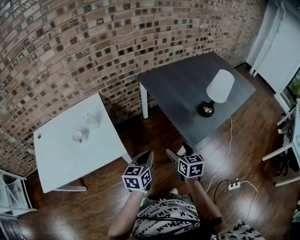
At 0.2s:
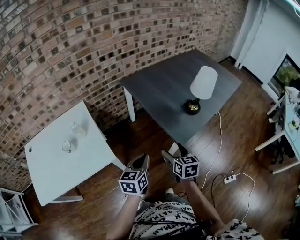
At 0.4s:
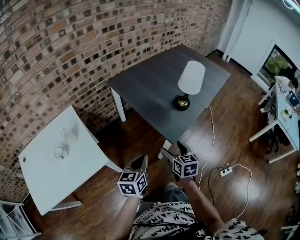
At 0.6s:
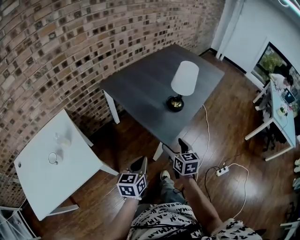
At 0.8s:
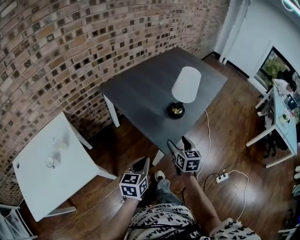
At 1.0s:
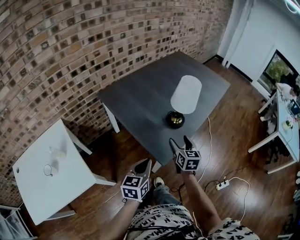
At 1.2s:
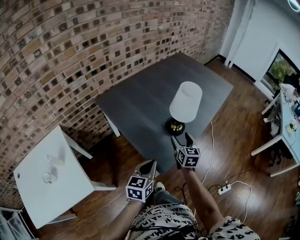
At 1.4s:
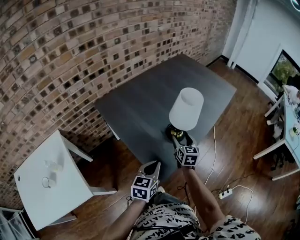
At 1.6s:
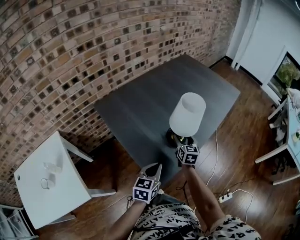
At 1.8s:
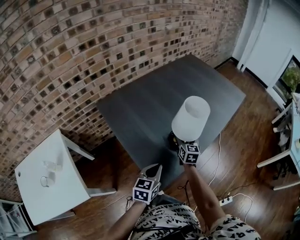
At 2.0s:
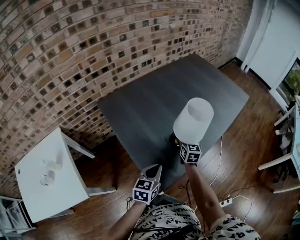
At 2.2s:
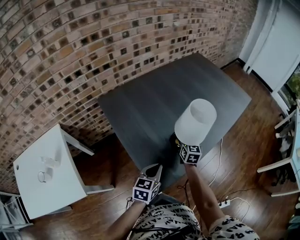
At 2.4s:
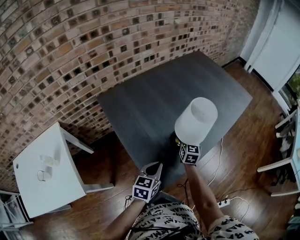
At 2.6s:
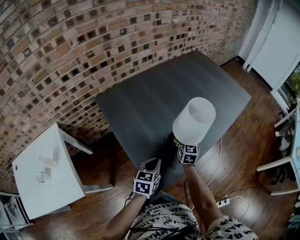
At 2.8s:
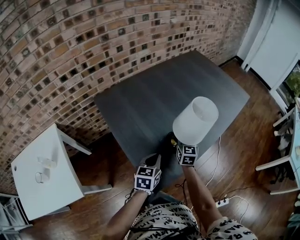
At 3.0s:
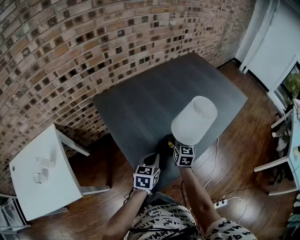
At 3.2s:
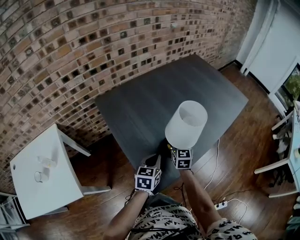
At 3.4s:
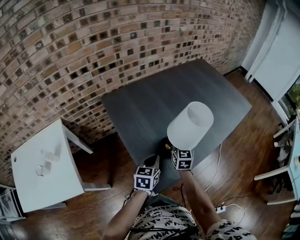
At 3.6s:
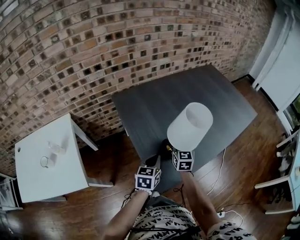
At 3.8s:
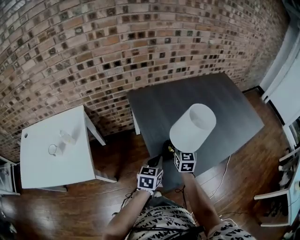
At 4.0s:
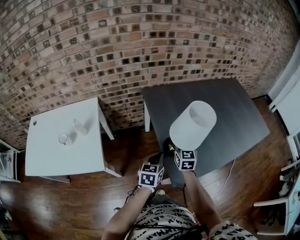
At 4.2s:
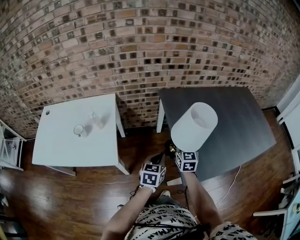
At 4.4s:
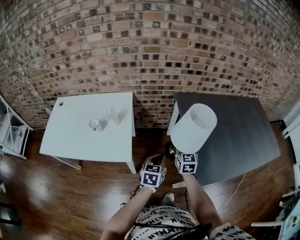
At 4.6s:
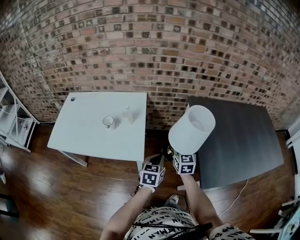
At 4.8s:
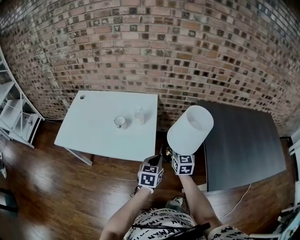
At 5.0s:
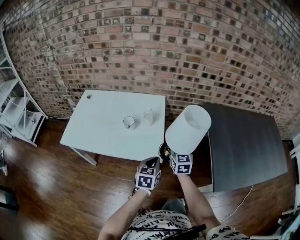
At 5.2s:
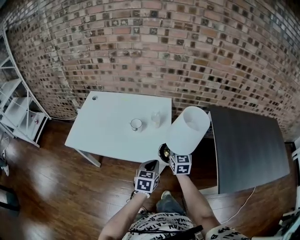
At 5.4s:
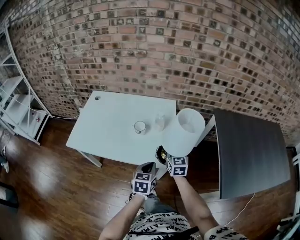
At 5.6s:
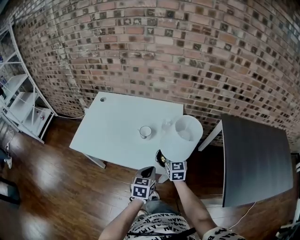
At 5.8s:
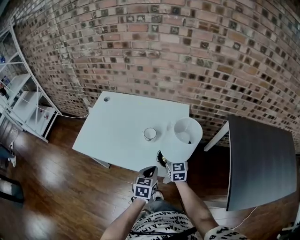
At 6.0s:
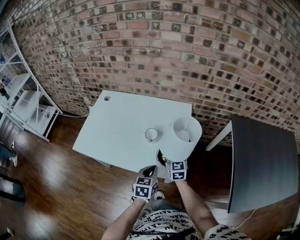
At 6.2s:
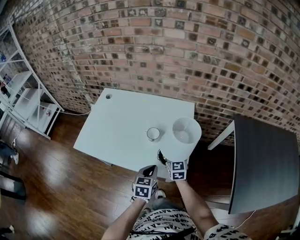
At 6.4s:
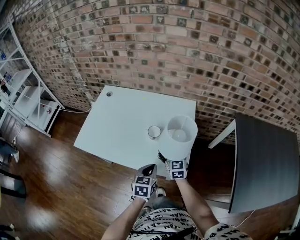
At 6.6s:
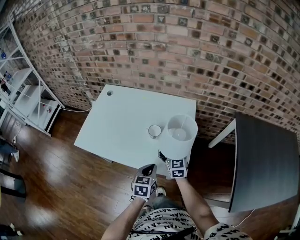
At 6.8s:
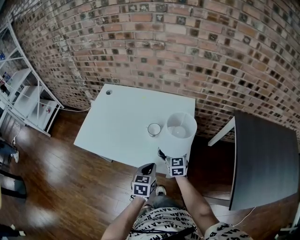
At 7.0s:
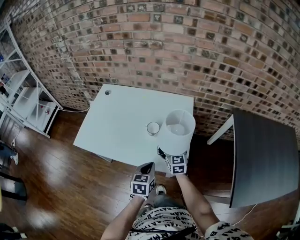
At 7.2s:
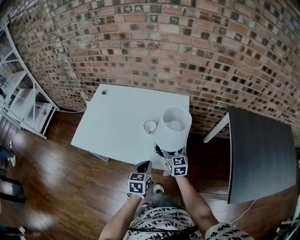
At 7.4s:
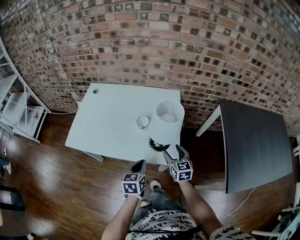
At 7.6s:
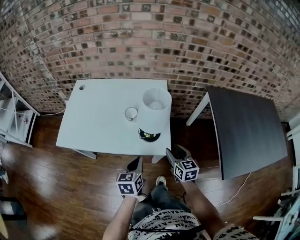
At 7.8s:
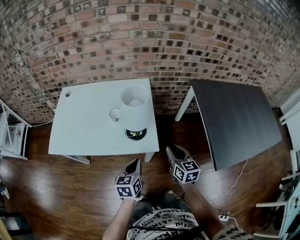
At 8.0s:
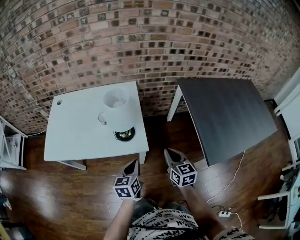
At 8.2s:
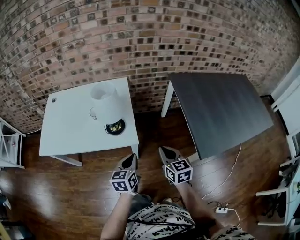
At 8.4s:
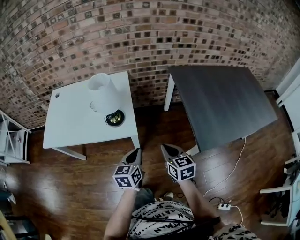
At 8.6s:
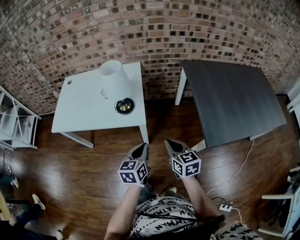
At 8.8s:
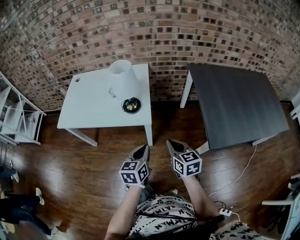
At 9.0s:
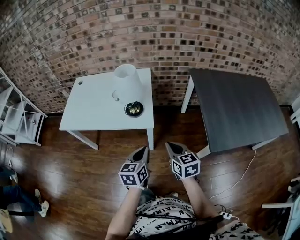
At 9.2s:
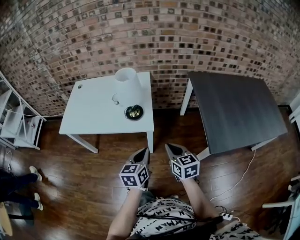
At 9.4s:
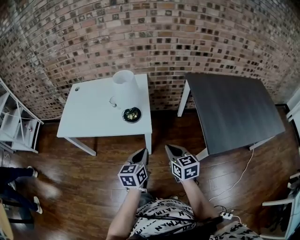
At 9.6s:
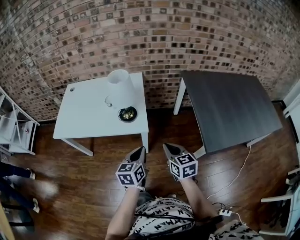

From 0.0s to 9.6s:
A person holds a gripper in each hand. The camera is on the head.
From 0.0s to 1.6s: Both grippers move forward and to the right, about 40 cm. The left gripper turns by about 20 degrees. Meanwhile the right gripper changes its angle by roughly 20 degrees.
From 1.6s to 3.2s: The left gripper heads forward, covering some 10 cm; the right gripper ends up roughly 5 cm from where it was, and closes its fingers.
From 3.2s to 4.8s: The two grippers travel together, approximately 50 cm. The left gripper swivels some 40 degrees. The right gripper turns by some 40 degrees.
From 4.8s to 6.4s: The left gripper goes about 20 cm to the left. The right gripper moves to the left and forward, roughly 25 cm.
From 6.4s to 8.0s: The left gripper heads backward and to the right, covering some 15 cm. Meanwhile the right gripper goes some 30 cm backward and to the right, turns by some 20 degrees, and opens, then closes again.
From 8.0s to 9.6s: The left gripper travels backward and upward by some 10 cm; the right gripper is displaced backward by about 10 cm.

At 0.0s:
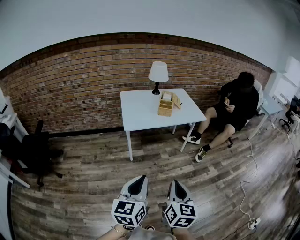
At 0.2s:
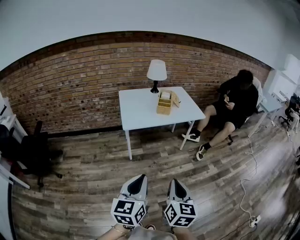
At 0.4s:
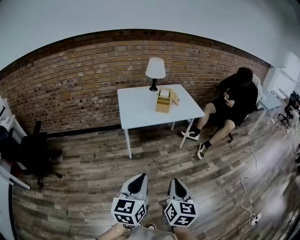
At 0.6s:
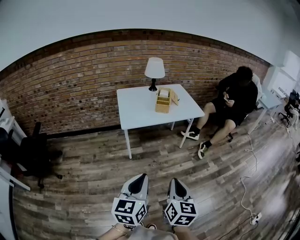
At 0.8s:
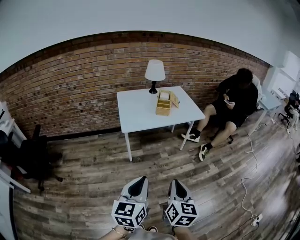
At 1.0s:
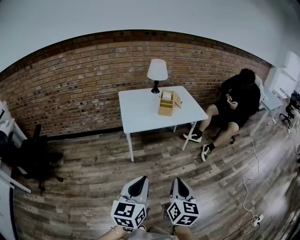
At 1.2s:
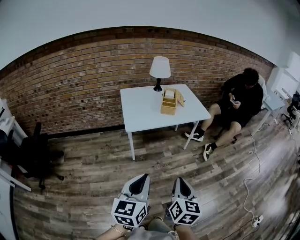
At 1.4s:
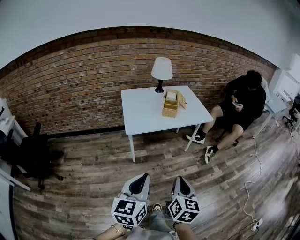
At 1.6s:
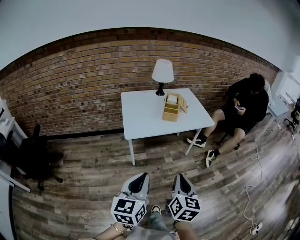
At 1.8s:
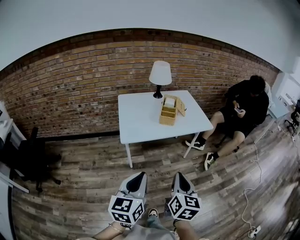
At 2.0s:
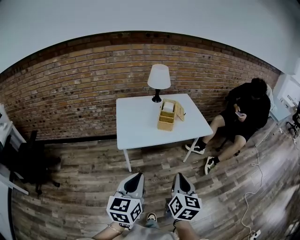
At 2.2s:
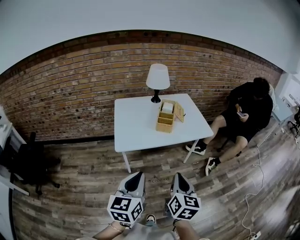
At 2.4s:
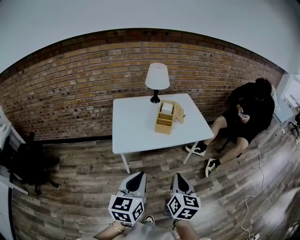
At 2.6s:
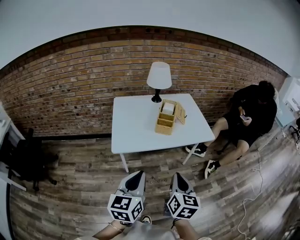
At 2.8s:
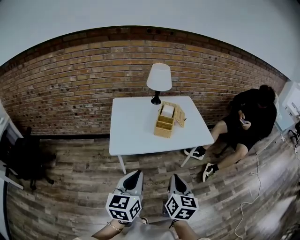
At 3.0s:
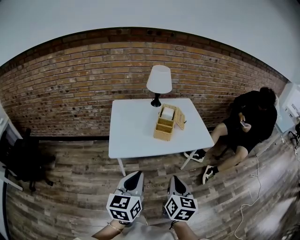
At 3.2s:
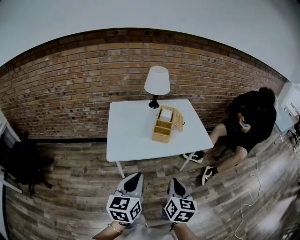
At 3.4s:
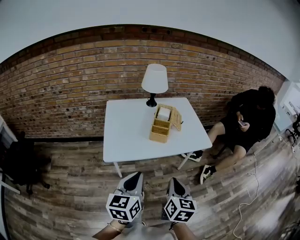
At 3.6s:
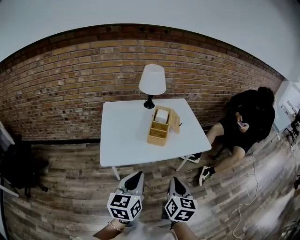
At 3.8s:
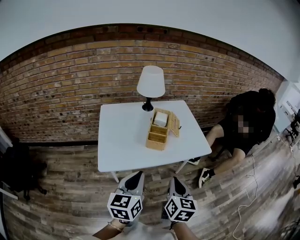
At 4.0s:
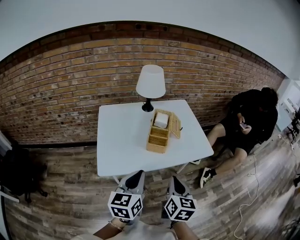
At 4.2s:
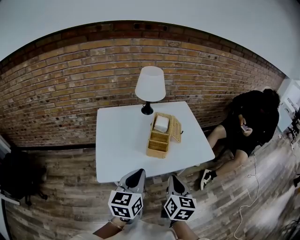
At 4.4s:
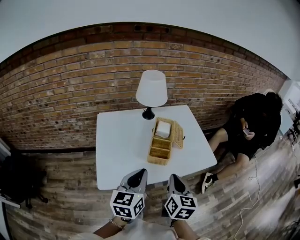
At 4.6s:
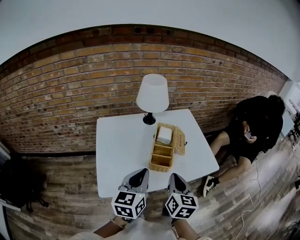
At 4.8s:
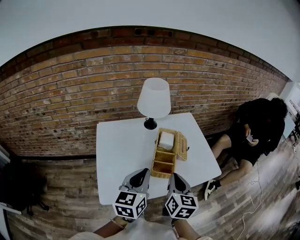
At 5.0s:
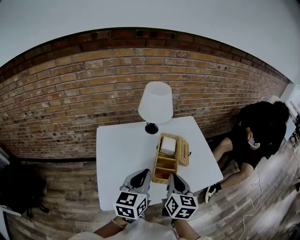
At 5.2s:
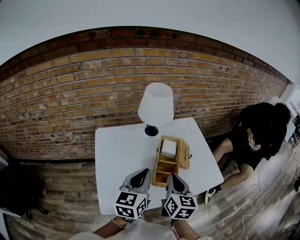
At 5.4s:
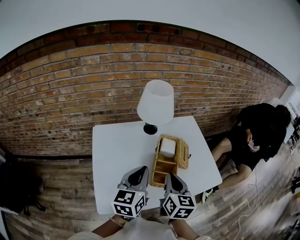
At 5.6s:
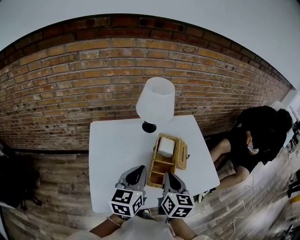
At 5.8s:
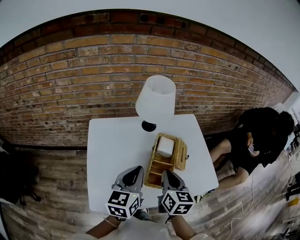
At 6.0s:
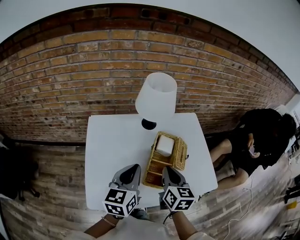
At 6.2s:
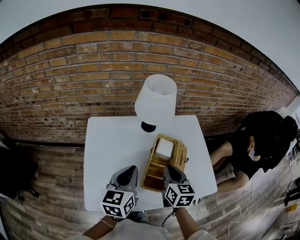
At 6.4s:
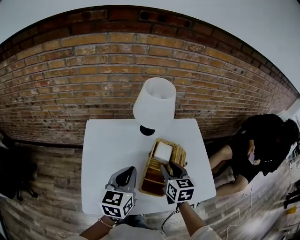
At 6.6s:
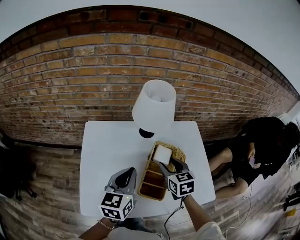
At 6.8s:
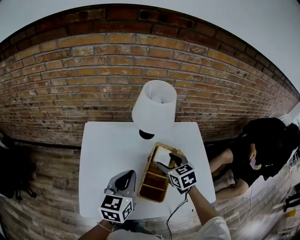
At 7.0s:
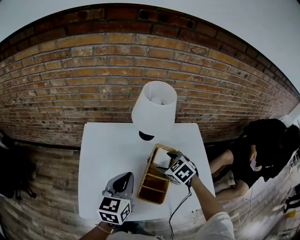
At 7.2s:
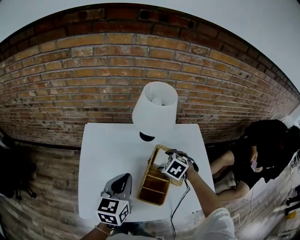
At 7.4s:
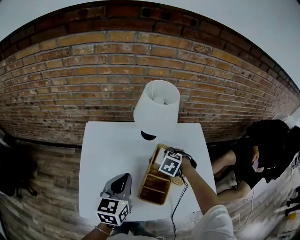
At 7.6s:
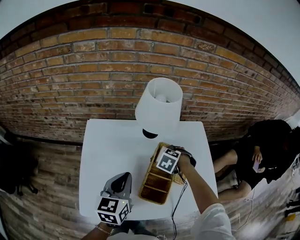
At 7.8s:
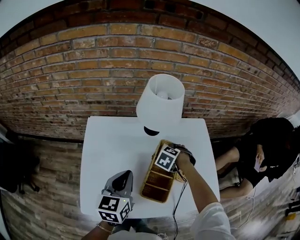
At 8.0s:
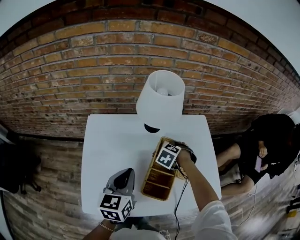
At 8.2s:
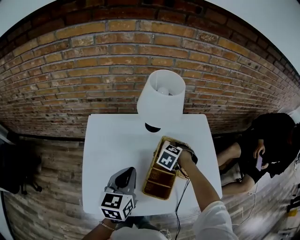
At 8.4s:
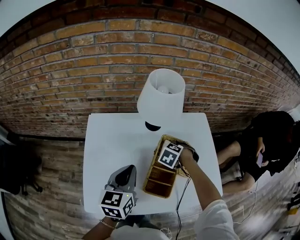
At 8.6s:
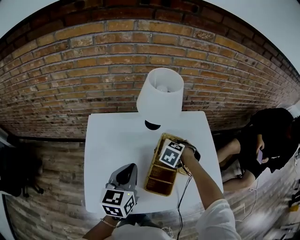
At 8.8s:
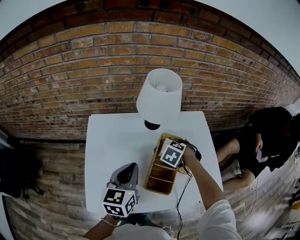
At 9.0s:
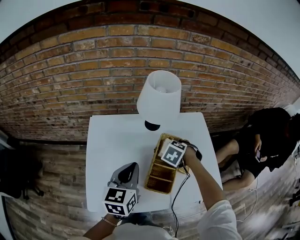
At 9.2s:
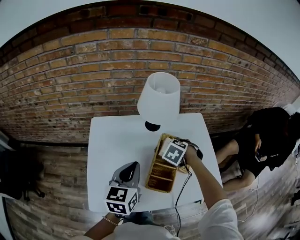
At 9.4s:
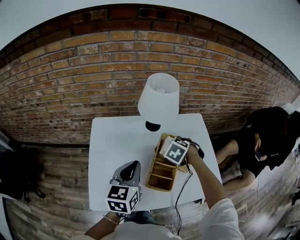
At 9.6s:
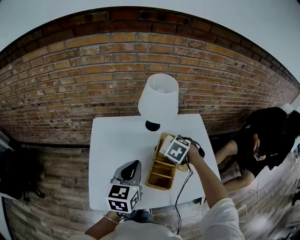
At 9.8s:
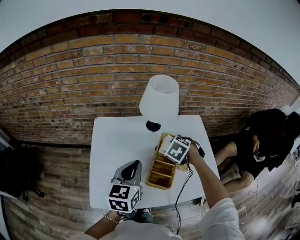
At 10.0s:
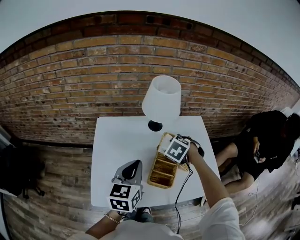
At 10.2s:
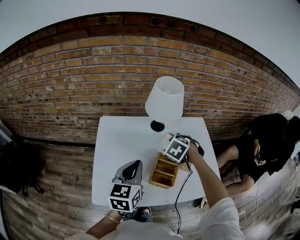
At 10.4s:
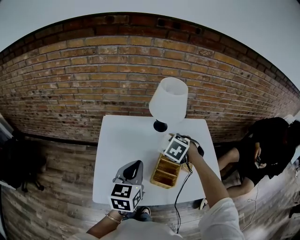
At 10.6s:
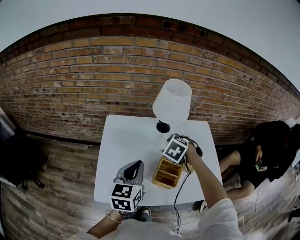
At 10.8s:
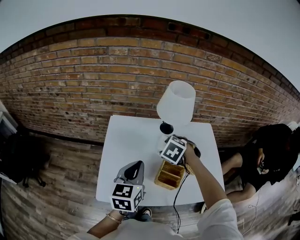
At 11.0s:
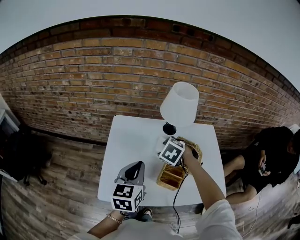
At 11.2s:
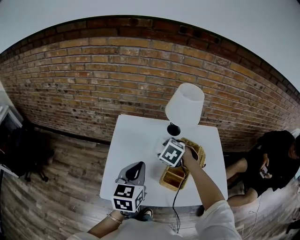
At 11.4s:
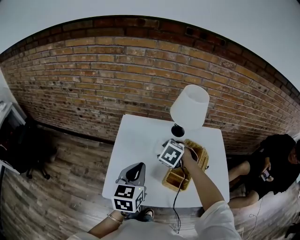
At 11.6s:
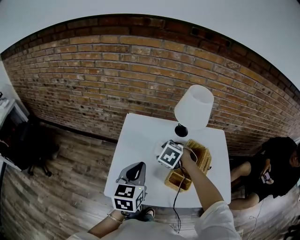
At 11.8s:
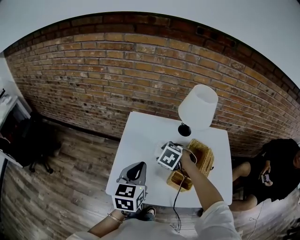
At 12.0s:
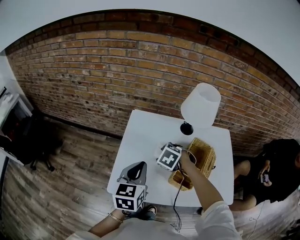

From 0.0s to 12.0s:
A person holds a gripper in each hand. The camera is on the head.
From 0.0s to 1.6s: Both grippers travel together forward, approximately 15 cm.
From 1.6s to 3.0s: Both grippers move forward, some 20 cm.
From 3.0s to 4.4s: The grippers both shift forward by some 20 cm.
From 4.4s to 6.0s: The two grippers go roughly 20 cm forward.
From 6.0s to 7.6s: The left gripper changes place by roughly 5 cm; the right gripper is displaced downward by roughly 15 cm, points its fingers roughly 50 degrees further downward, and opens.
From 7.6s to 9.0s: The grippers make only small movements.
From 9.0s to 10.4s: The right gripper travels upward by about 10 cm; the left gripper ends up some 5 cm from where it was.
From 10.4s to 12.0s: The left gripper goes roughly 10 cm to the left; the right gripper moves to the left, some 15 cm.

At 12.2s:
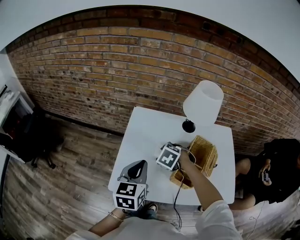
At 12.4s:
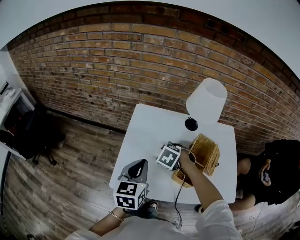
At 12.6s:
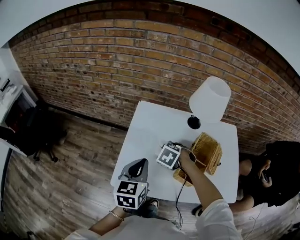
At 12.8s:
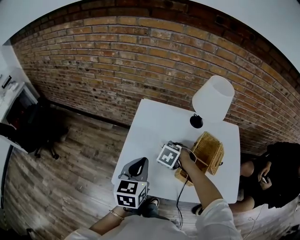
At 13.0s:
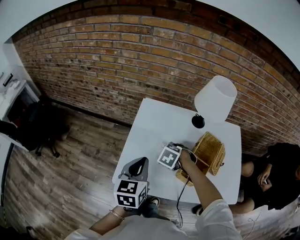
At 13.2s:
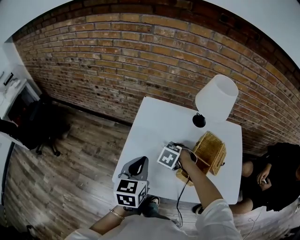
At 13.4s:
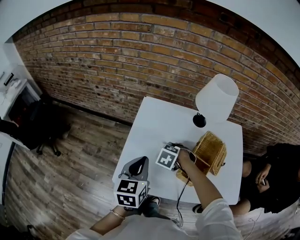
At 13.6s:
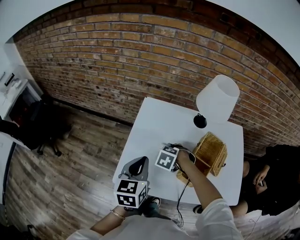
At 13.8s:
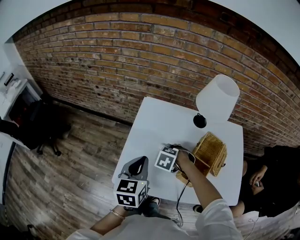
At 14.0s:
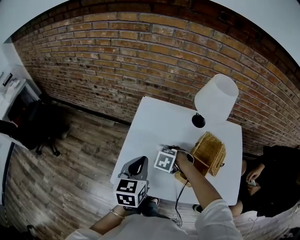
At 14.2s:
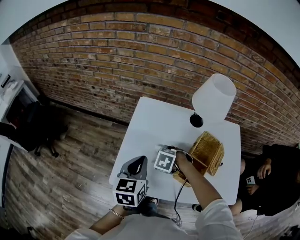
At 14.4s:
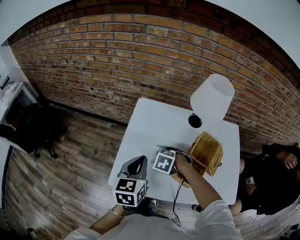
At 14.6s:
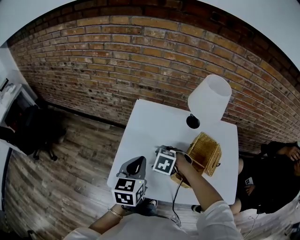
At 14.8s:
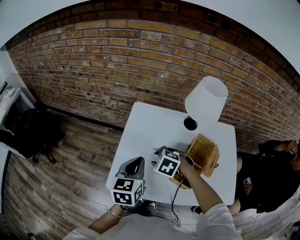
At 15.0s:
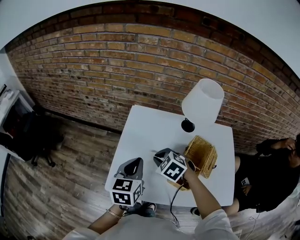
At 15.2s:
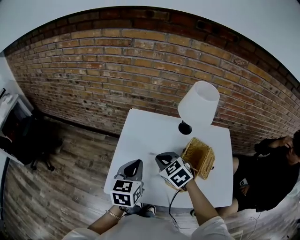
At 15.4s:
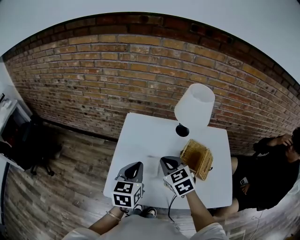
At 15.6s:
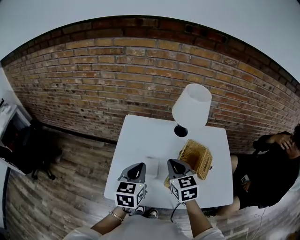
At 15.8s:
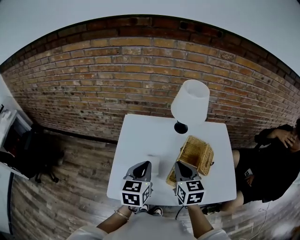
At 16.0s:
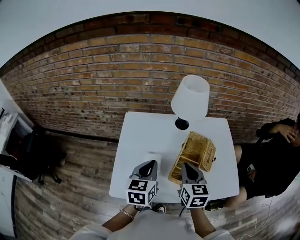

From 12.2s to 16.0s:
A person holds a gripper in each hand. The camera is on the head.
From 12.2s to 13.4s: The right gripper goes approximately 5 cm downward.
From 13.4s to 14.8s: The right gripper shifts roughly 5 cm upward.
From 14.8s to 16.0s: The left gripper shifts by roughly 10 cm. The right gripper moves approximately 20 cm, tilts its fingers approximately 50 degrees upward, and closes.
